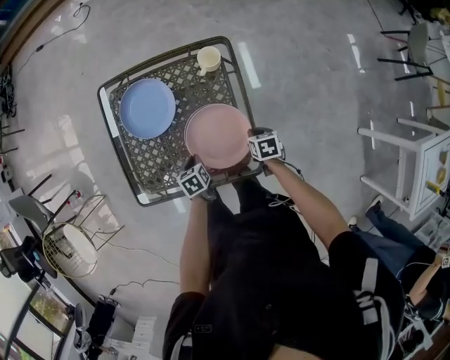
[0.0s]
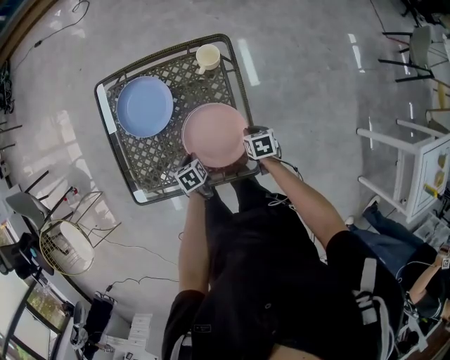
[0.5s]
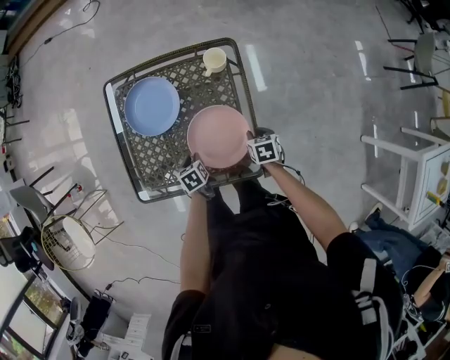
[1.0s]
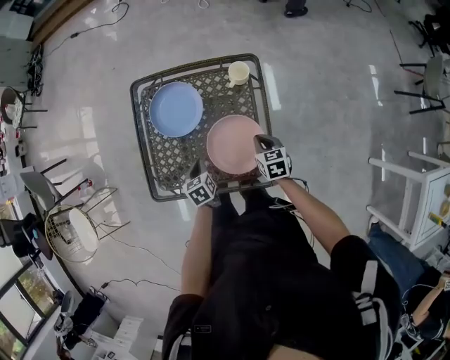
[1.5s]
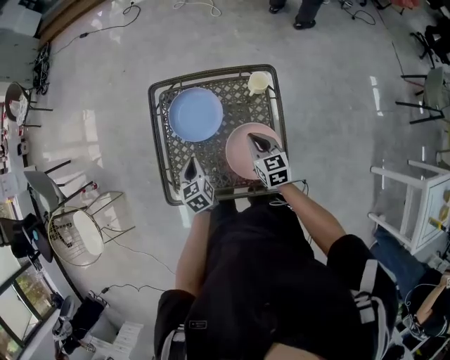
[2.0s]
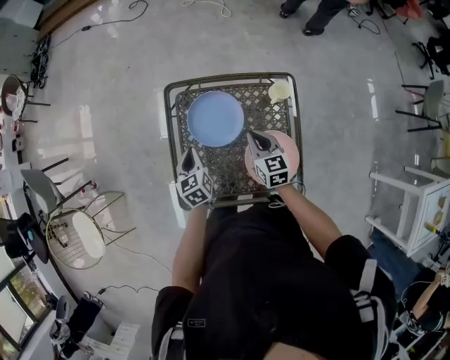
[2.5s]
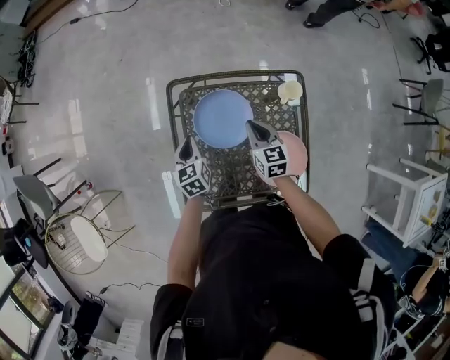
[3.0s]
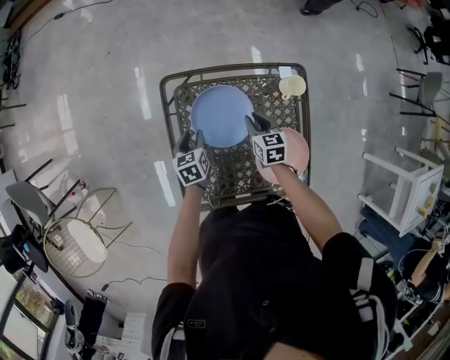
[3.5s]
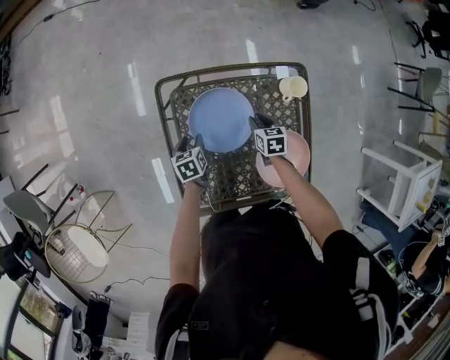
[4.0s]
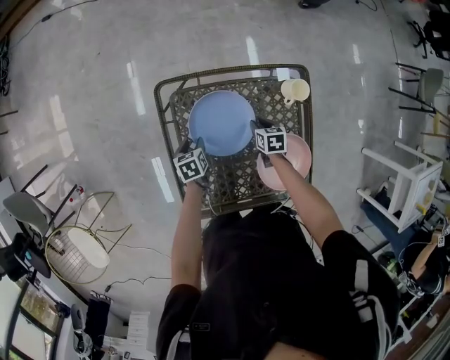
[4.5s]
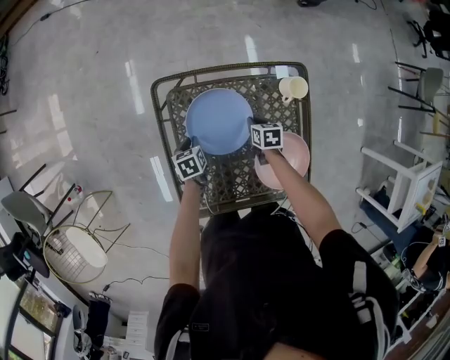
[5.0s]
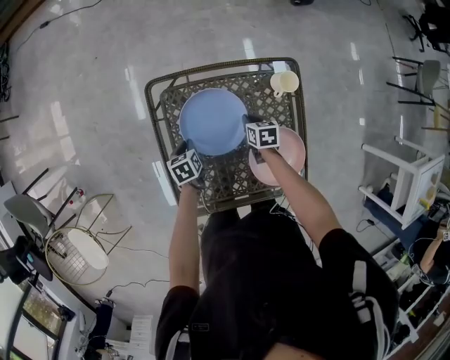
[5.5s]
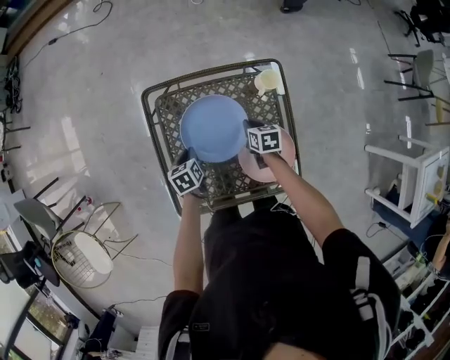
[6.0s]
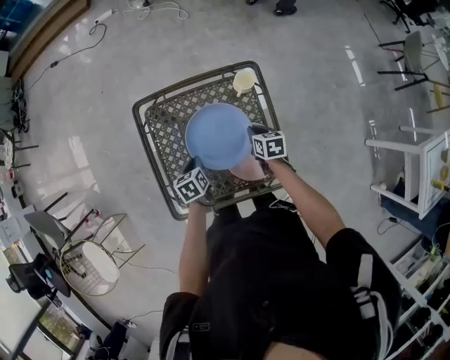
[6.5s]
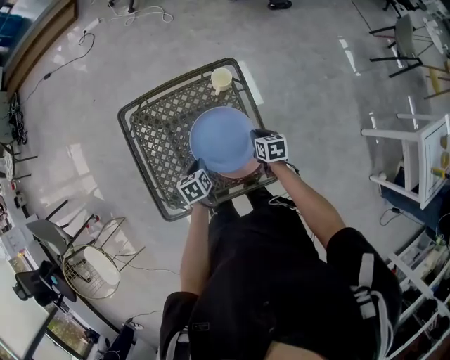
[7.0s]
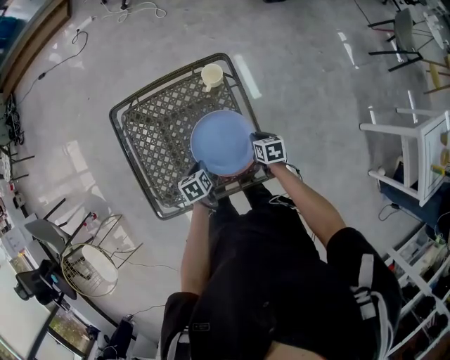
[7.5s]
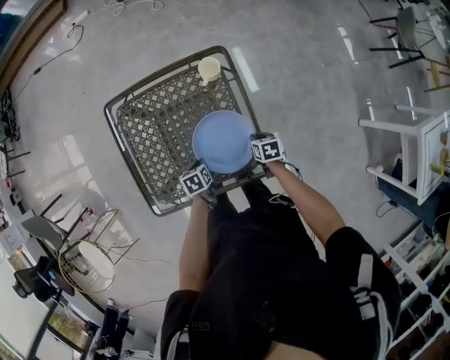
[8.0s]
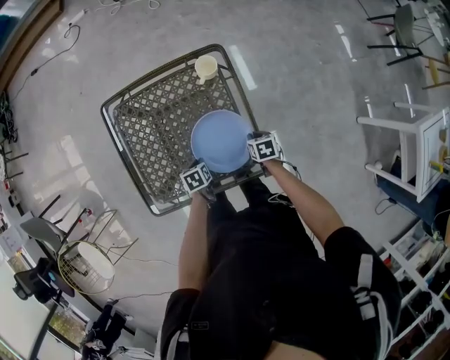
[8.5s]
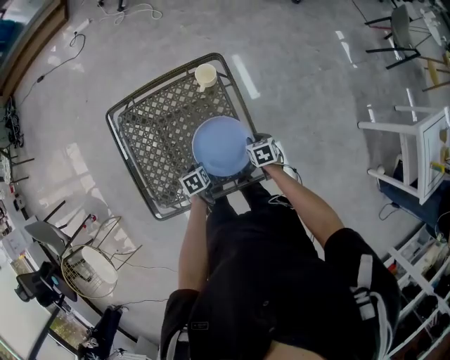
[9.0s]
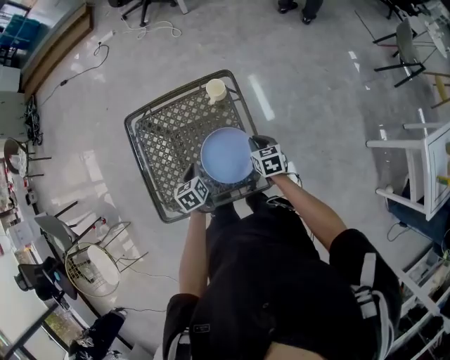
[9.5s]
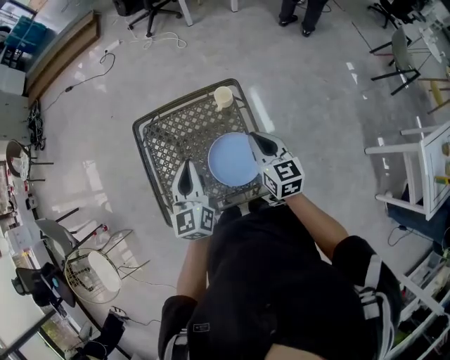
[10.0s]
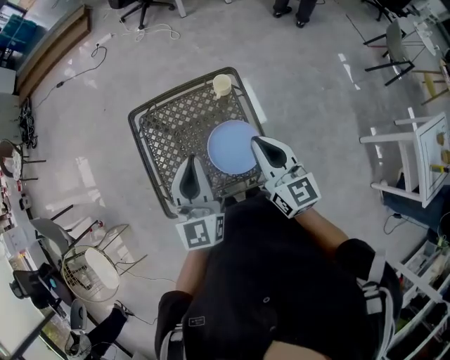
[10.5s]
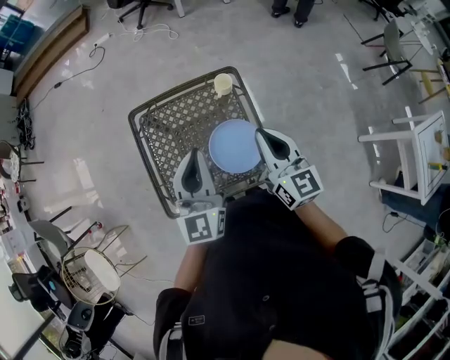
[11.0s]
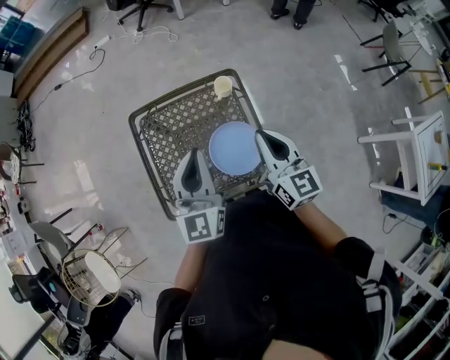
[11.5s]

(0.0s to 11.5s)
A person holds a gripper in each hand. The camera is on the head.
0.0s - 2.0s: Both grippers travel together upward, to the left and forward, some 25 cm. The left gripper rotates about 30 degrees. Meanwhile the right gripper tips its fingers upward by approximately 30 degrees.
2.0s - 4.0s: The left gripper goes roughly 25 cm forward, downward and to the left, swivels roughly 30 degrees, and opens its fingers; the right gripper travels downward, forward and to the left by approximately 25 cm, rotates roughly 30 degrees, and opens its fingers.
4.0s - 6.0s: The left gripper heads backward, upward and to the right, covering some 10 cm, and closes. Meanwhile the right gripper heads backward, covering about 5 cm.
6.0s - 7.5s: Both grippers move to the right and backward, approximately 25 cm.
7.5s - 9.5s: The grippers both shift upward by roughly 10 cm. The left gripper opens, then closes once more.
9.5s - 11.5s: Both grippers move upward, about 30 cm. The right gripper tilts its fingers approximately 40 degrees upward, while the left gripper tips its fingers upward by some 50 degrees.

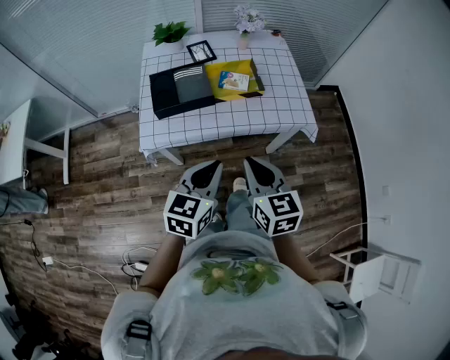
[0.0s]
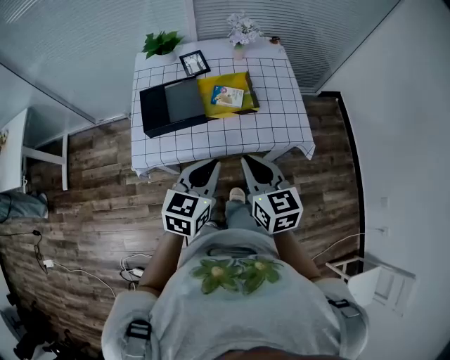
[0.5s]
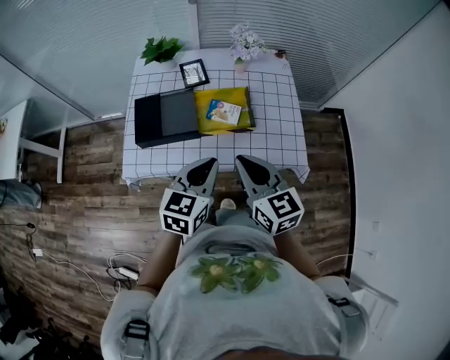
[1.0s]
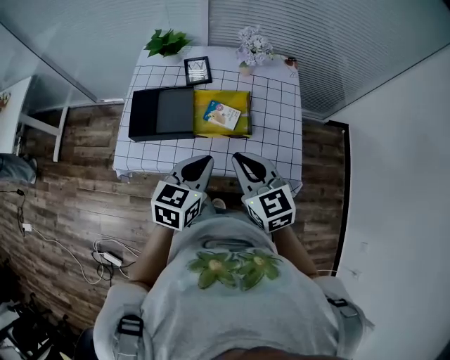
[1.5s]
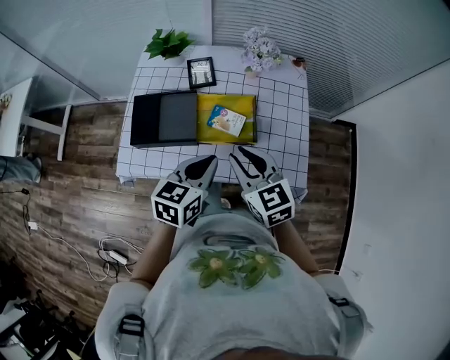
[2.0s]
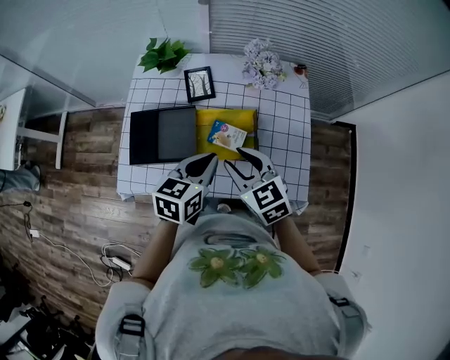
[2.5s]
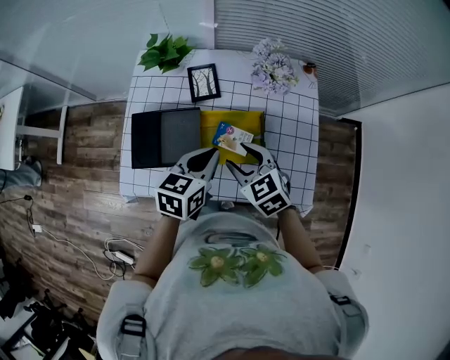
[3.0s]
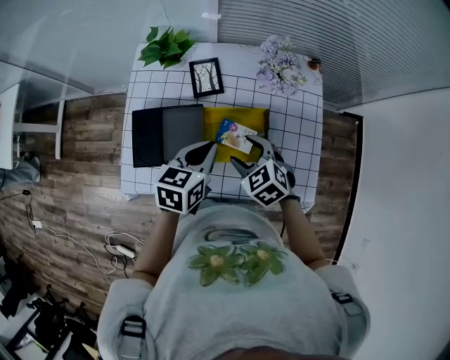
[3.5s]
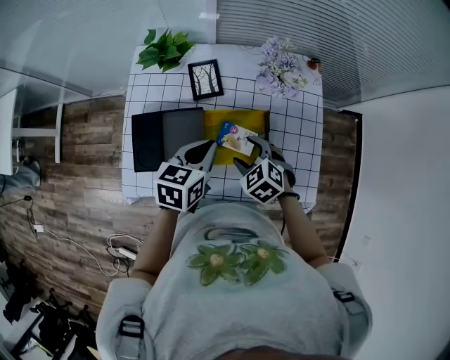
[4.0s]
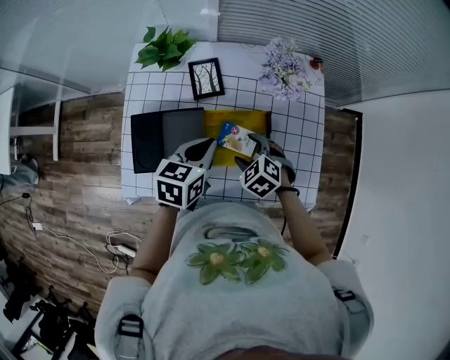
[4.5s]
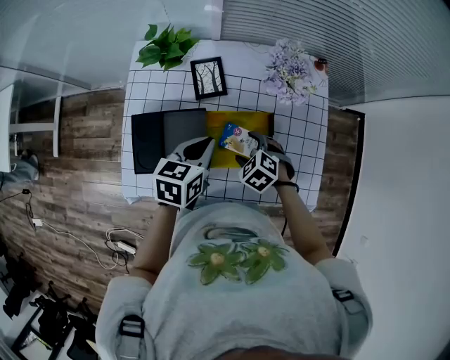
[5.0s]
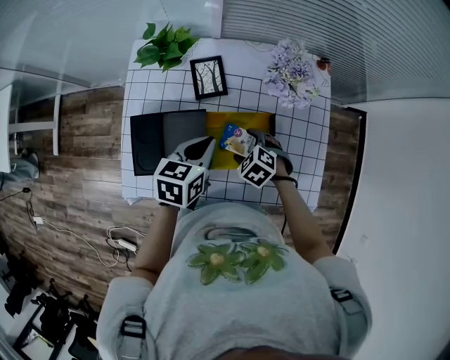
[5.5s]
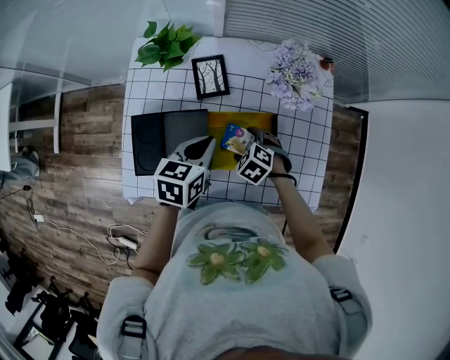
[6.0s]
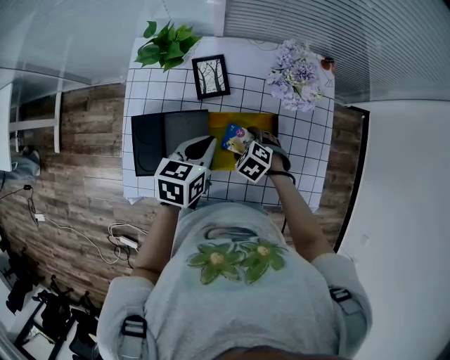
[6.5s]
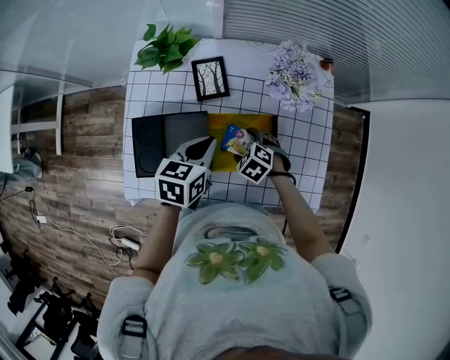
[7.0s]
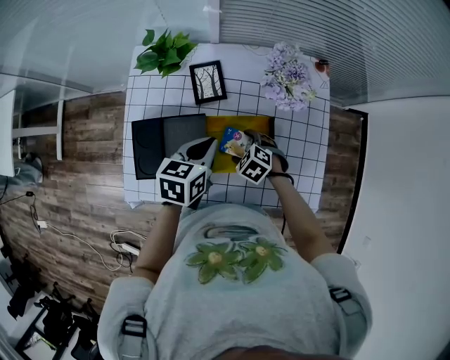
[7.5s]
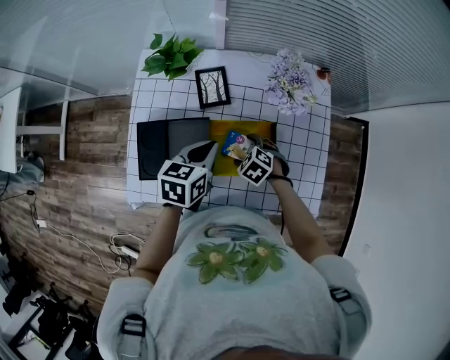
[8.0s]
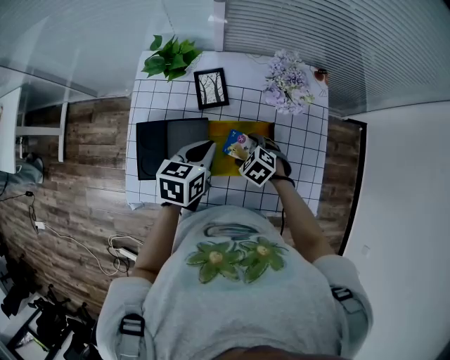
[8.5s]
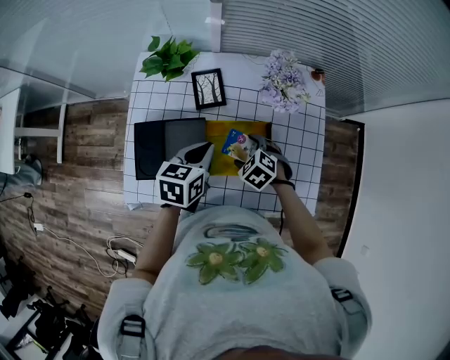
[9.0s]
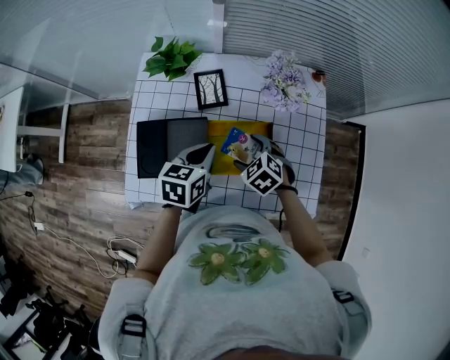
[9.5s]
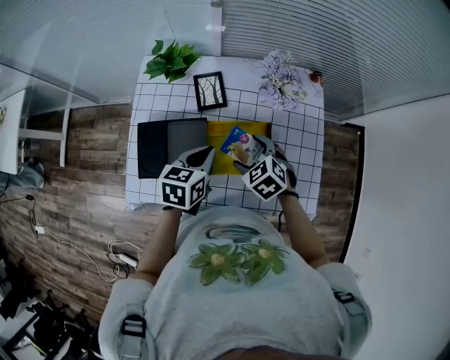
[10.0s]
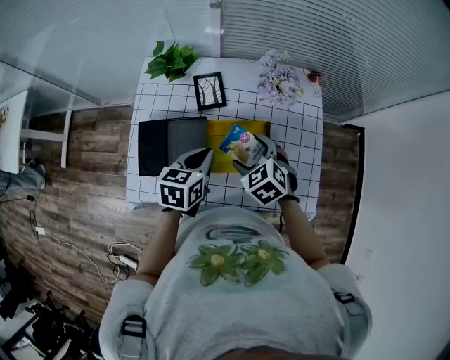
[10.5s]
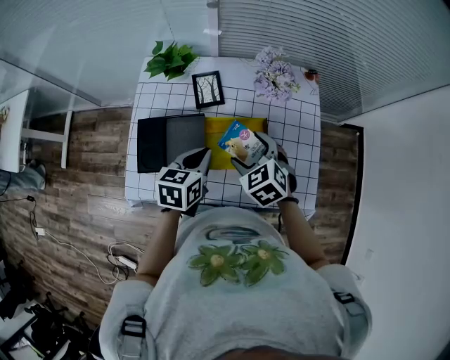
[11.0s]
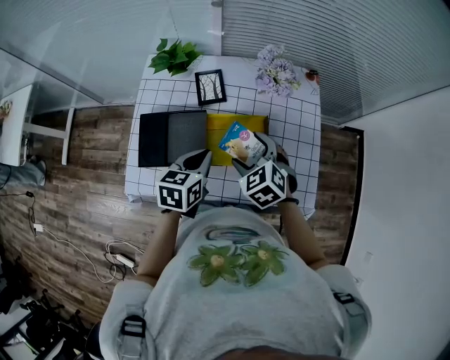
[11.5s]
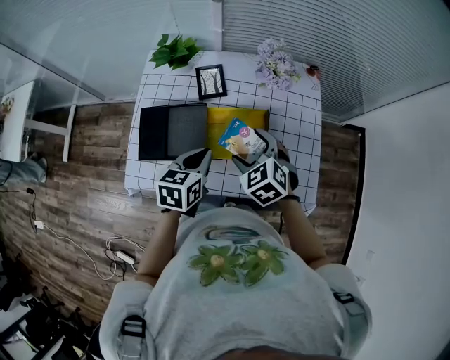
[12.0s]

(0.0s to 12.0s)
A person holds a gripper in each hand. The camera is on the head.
0.0s - 2.0s: The grippers both shift forward by roughly 25 cm. The right gripper changes its angle by about 30 degrees.
2.0s - 4.0s: The right gripper heads downward and forward, covering approximately 20 cm, angles its fingers downward, by about 30 degrees, and opens up, while the left gripper goes about 15 cm forward.
4.0s - 6.0s: The left gripper ends up roughly 5 cm from where it was. Meanwhile the right gripper is displaced downward by about 10 cm.
6.0s - 8.0s: The grippers stay close to where they were, moving slightly.
8.0s - 10.0s: The right gripper goes some 15 cm upward.
10.0s - 12.0s: The left gripper goes approximately 5 cm backward; the right gripper heads upward, covering some 5 cm.

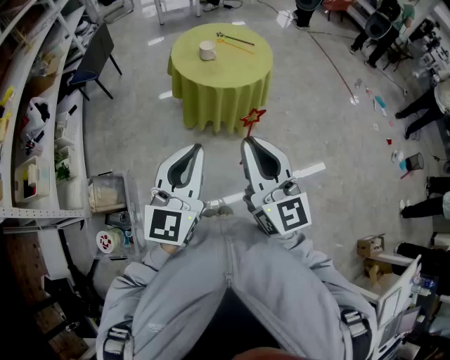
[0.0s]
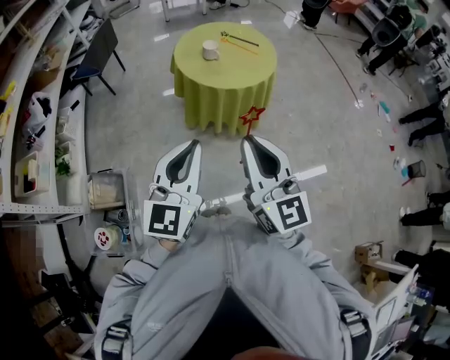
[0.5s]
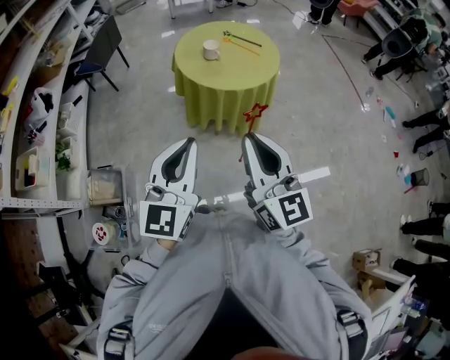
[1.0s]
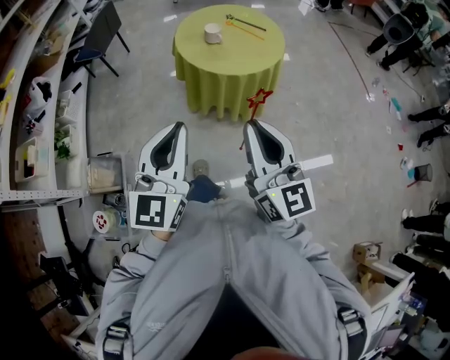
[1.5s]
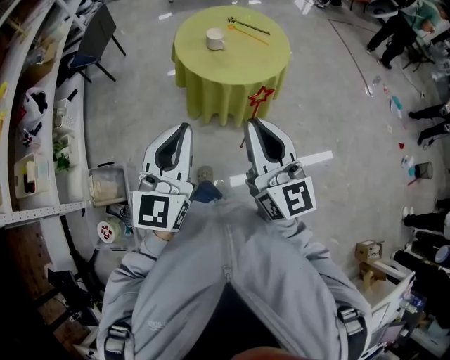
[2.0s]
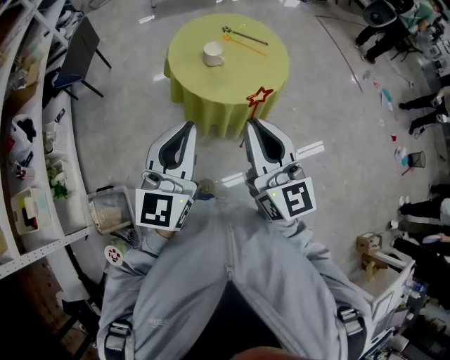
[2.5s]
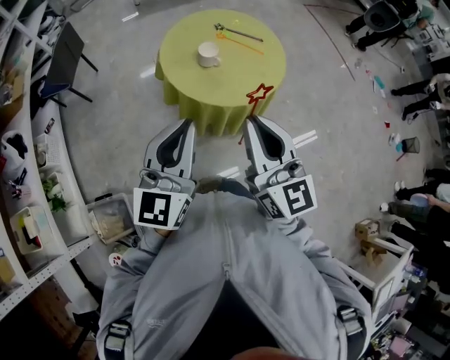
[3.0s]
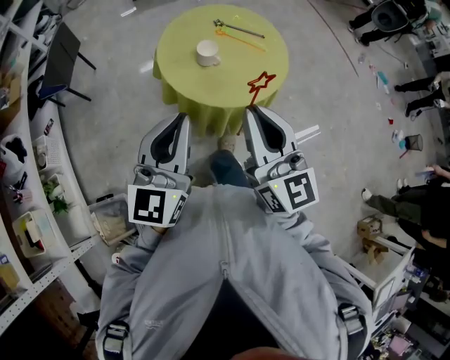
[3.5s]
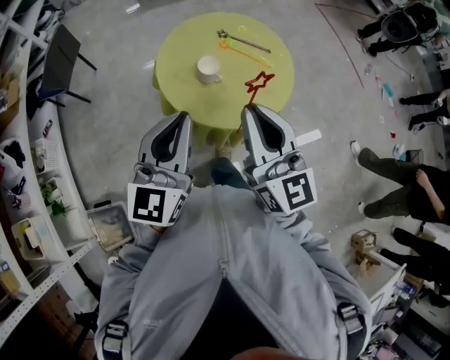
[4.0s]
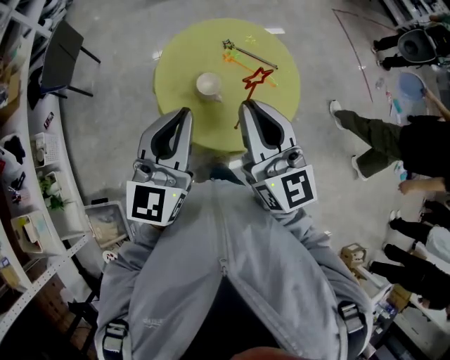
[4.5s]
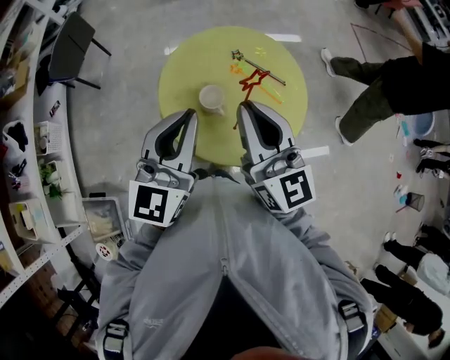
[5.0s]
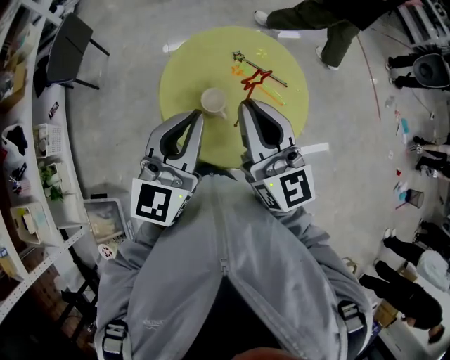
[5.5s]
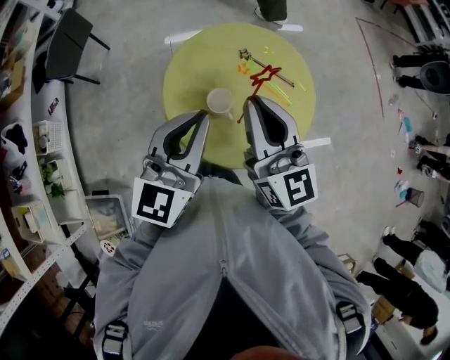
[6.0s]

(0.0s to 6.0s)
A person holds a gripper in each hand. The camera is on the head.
0.0s - 2.0s: The two grippers go roughly 15 cm forward.
2.0s - 4.0s: Both grippers travel together forward, roughly 35 cm.
4.0s - 6.0s: Both grippers move forward, some 25 cm.
